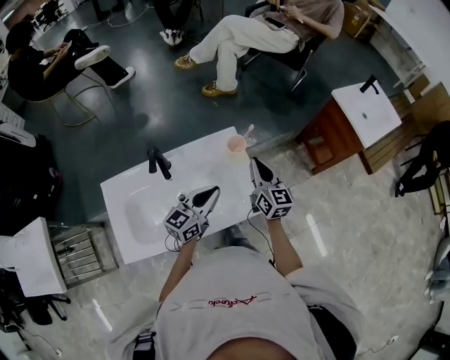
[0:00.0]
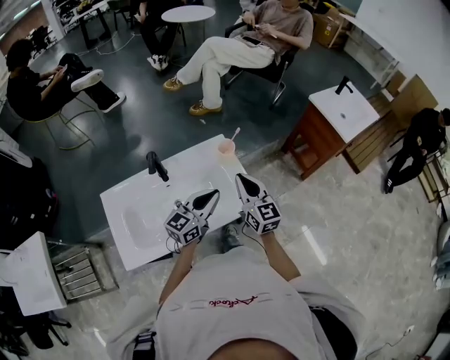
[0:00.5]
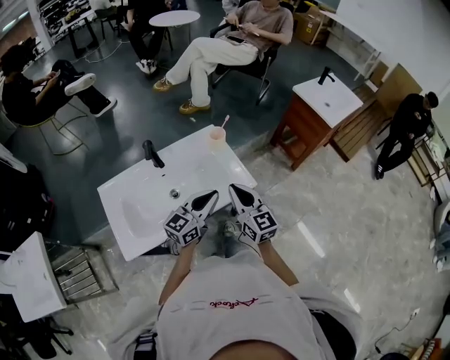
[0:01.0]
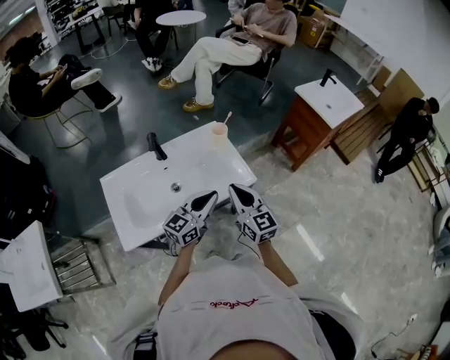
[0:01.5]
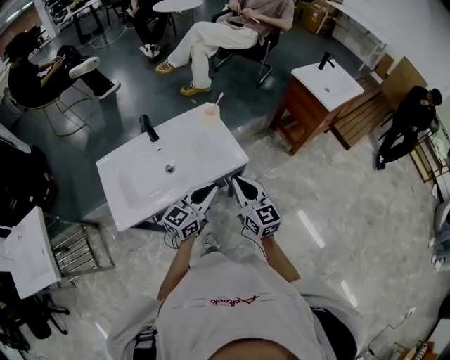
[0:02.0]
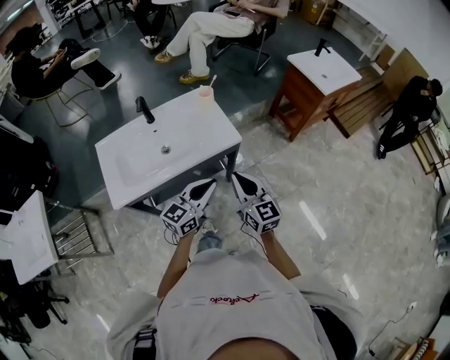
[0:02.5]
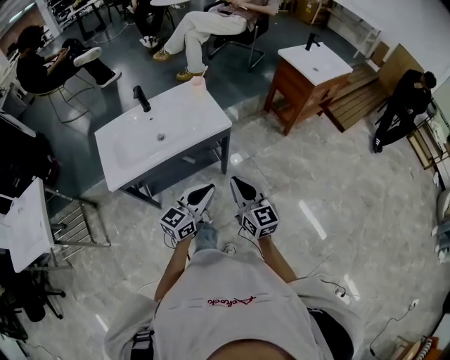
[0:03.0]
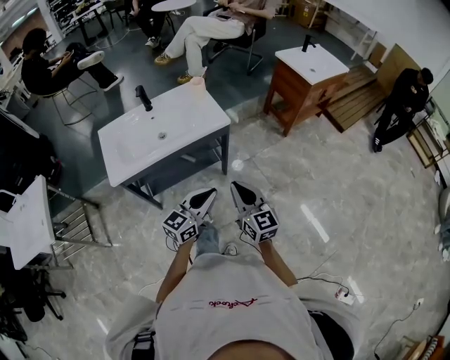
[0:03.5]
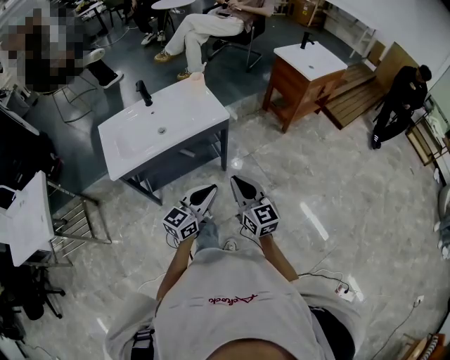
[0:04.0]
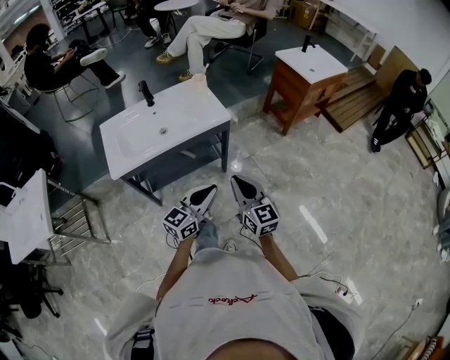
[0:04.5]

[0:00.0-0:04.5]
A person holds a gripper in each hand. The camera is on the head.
0:00.0 to 0:02.0: The right gripper moves backward, about 30 cm; the left gripper is displaced backward and to the right by approximately 20 cm.
0:02.0 to 0:04.5: The grippers both shift backward and to the right by about 25 cm.

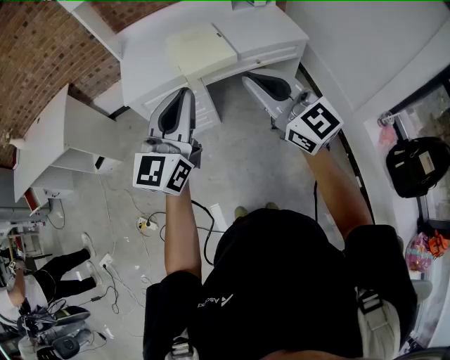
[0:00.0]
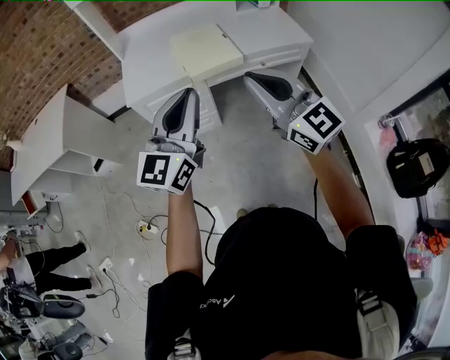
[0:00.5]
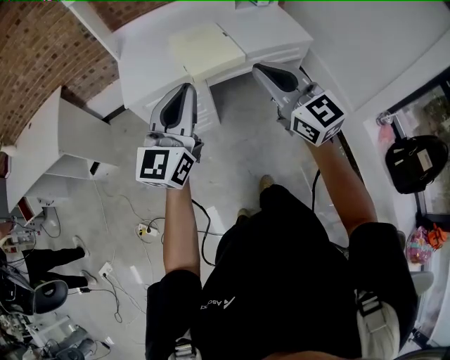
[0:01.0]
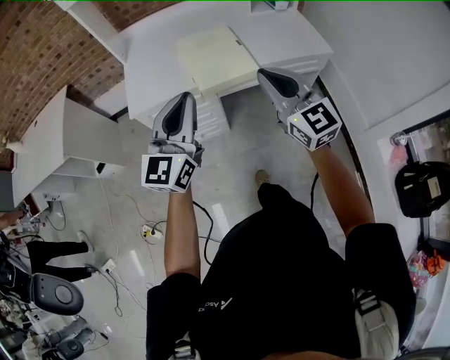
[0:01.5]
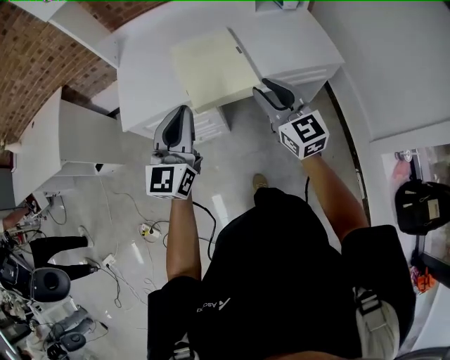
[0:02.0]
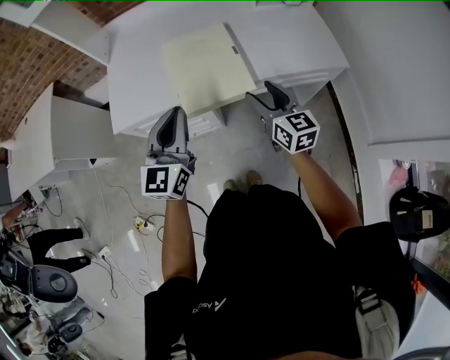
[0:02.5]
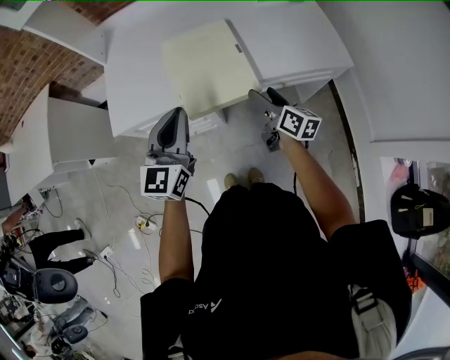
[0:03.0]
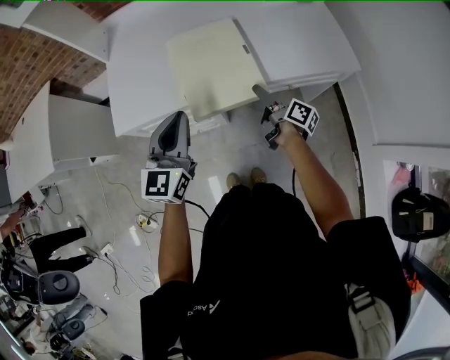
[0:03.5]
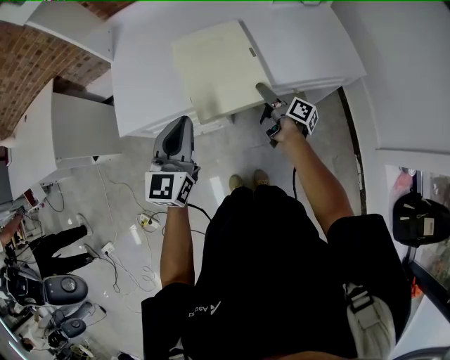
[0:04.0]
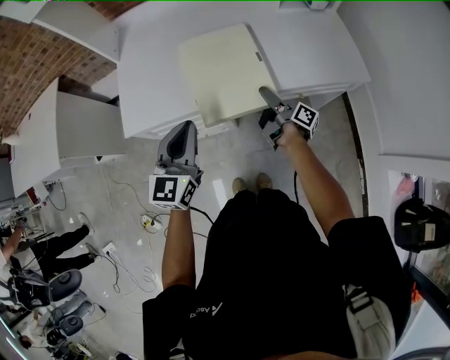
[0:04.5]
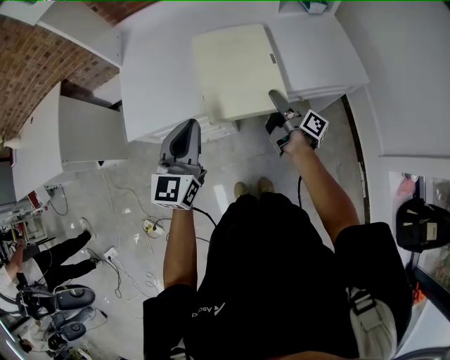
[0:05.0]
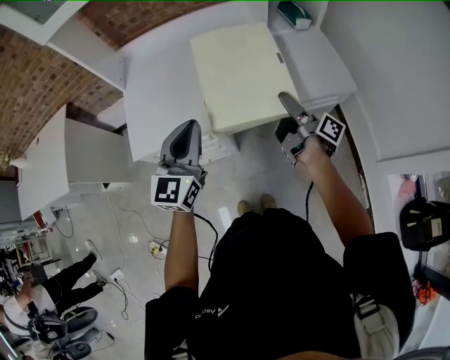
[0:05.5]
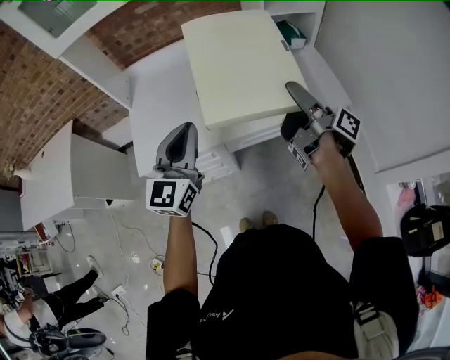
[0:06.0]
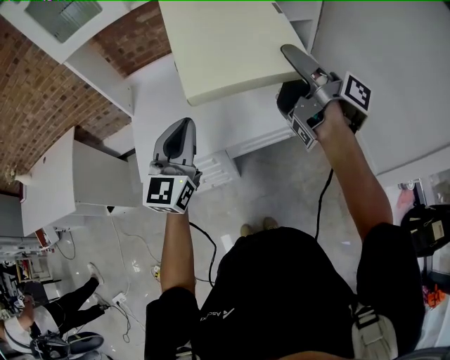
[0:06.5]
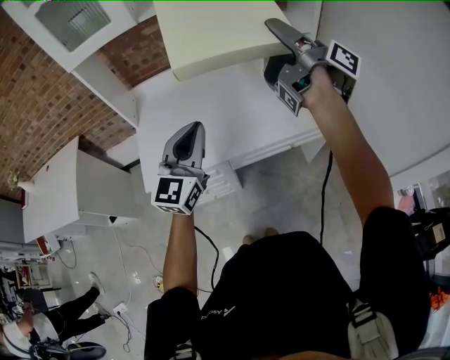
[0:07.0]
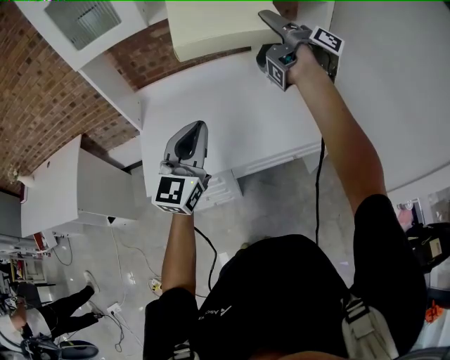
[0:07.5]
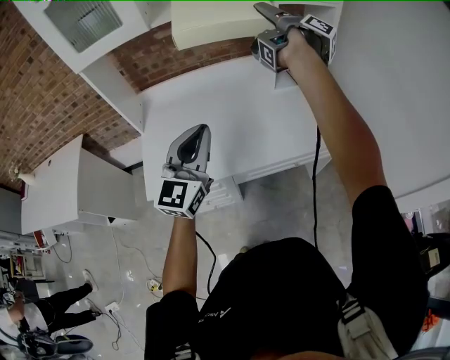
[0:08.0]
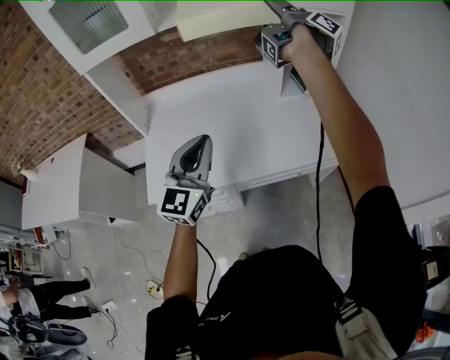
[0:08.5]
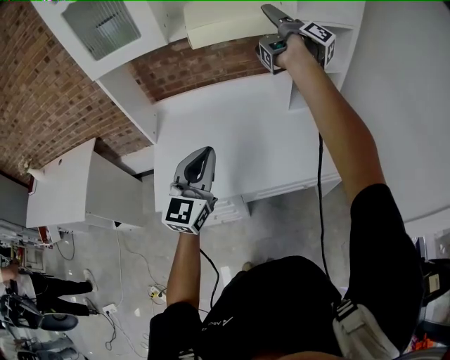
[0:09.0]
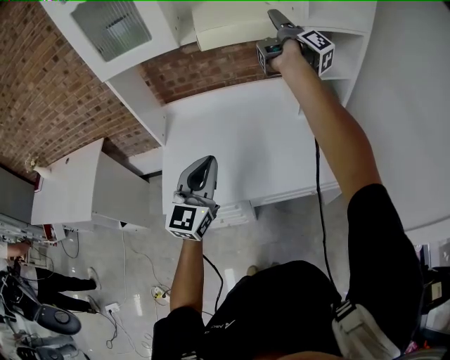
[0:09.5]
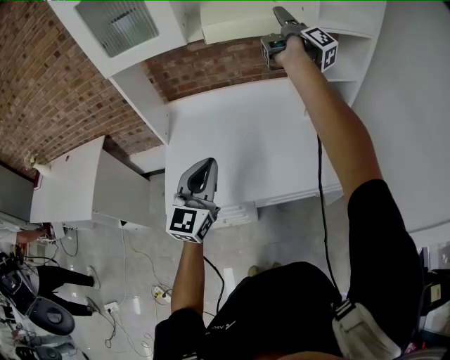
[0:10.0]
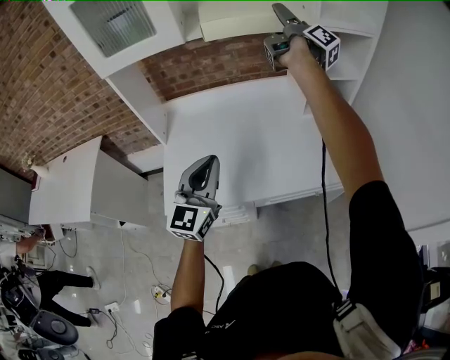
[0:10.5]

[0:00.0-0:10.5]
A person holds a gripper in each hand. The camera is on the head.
0:00.0 to 0:02.0: The two grippers go approximately 30 cm forward and downward.
0:02.0 to 0:04.0: The left gripper is displaced forward and downward by roughly 10 cm, while the right gripper heads downward and forward, covering some 30 cm, rolls clockwise, seen from behind, by roughly 90 degrees, and opens its fingers.
0:04.0 to 0:06.5: The right gripper travels upward by some 40 cm, and turns by some 30 degrees. Meanwhile the left gripper travels upward by about 15 cm.
0:06.5 to 0:08.5: The left gripper is displaced forward by some 5 cm; the right gripper moves forward and upward, about 30 cm.
0:08.5 to 0:10.5: The left gripper moves to the left, about 5 cm; the right gripper shifts some 10 cm forward.

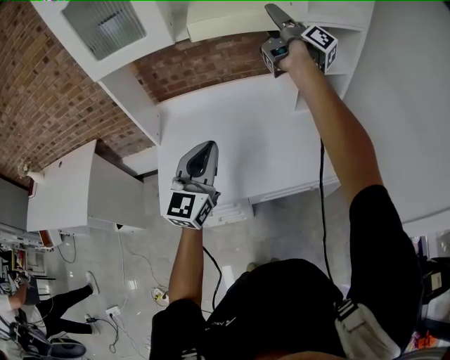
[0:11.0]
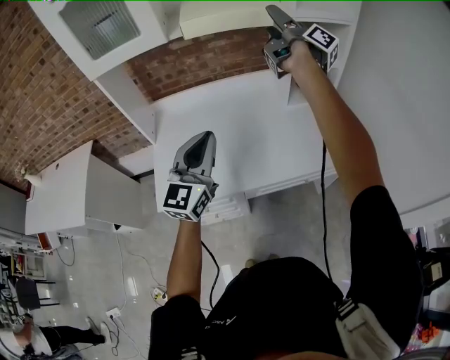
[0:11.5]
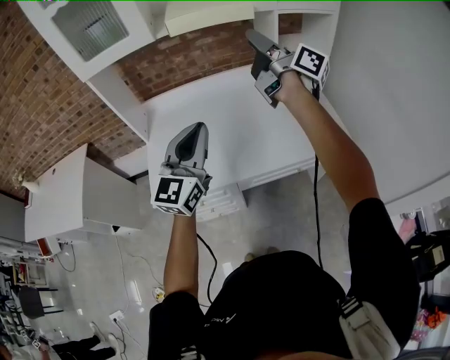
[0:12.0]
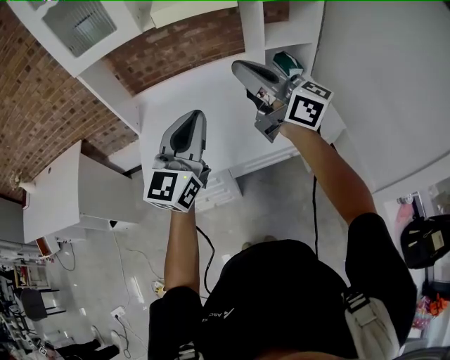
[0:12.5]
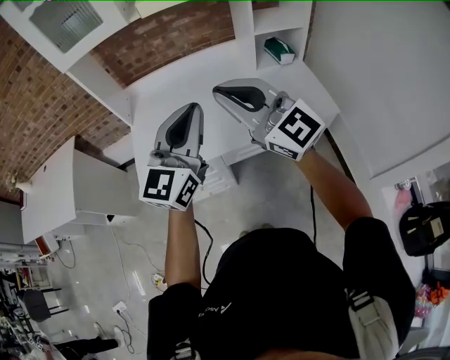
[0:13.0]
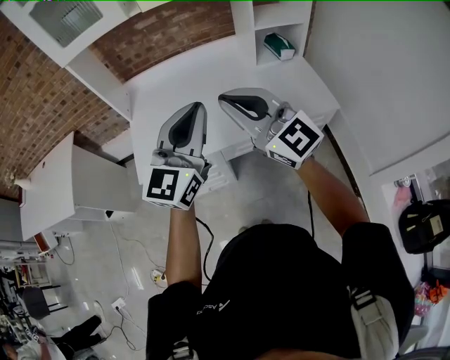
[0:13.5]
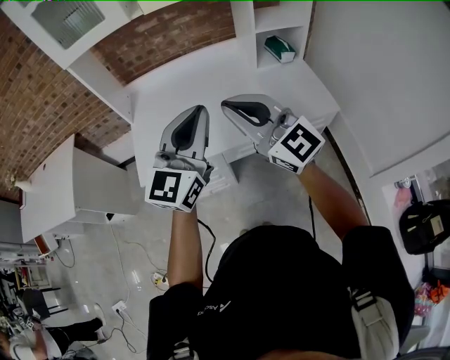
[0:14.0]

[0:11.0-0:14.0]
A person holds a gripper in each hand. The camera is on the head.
0:11.0 to 0:12.5: The left gripper moves backward, upward and to the right, roughly 15 cm. The right gripper goes about 30 cm backward, rolls counterclockwise, seen from behind, by about 50 degrees, and closes.
0:12.5 to 0:14.0: The left gripper changes place by approximately 5 cm; the right gripper is displaced backward and downward by some 15 cm, and turns by about 30 degrees.

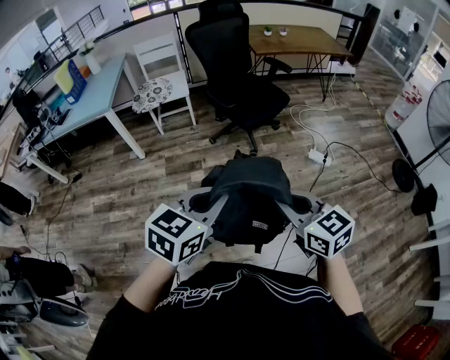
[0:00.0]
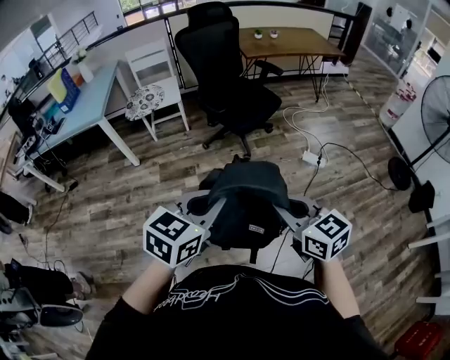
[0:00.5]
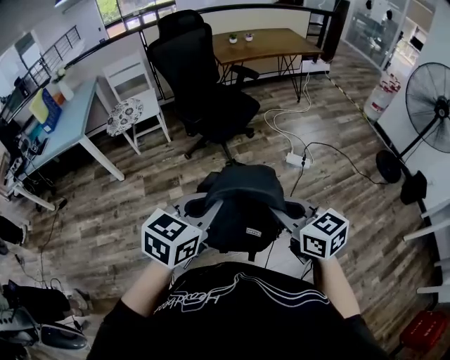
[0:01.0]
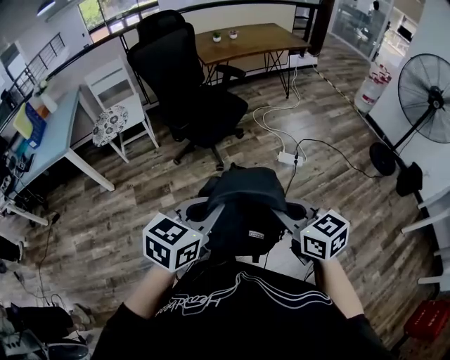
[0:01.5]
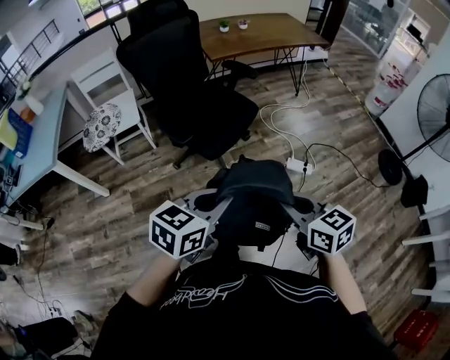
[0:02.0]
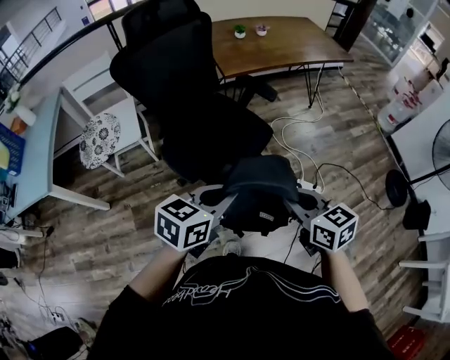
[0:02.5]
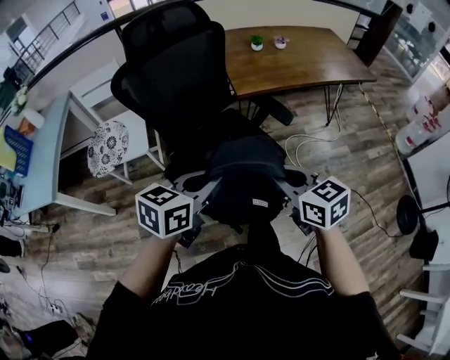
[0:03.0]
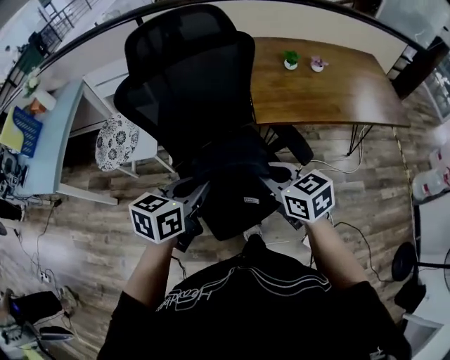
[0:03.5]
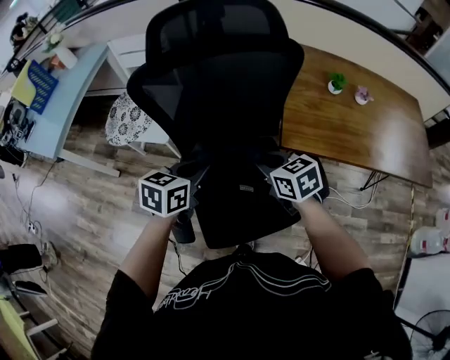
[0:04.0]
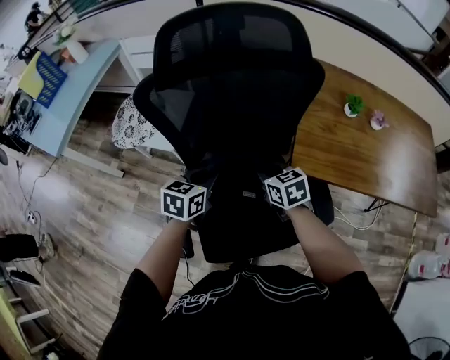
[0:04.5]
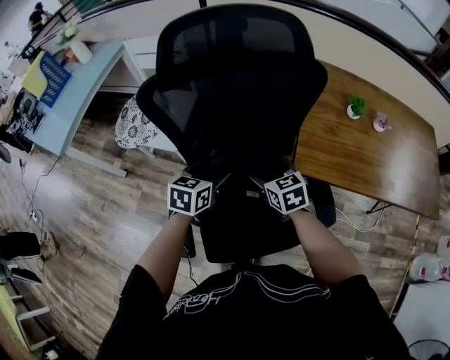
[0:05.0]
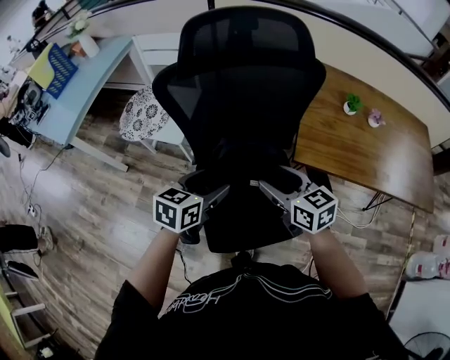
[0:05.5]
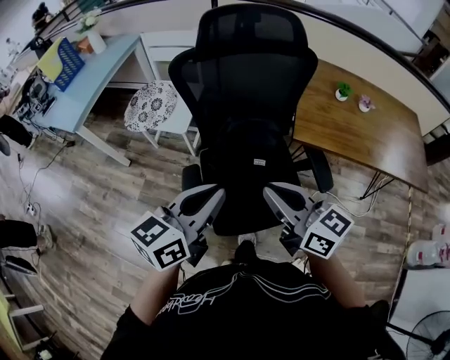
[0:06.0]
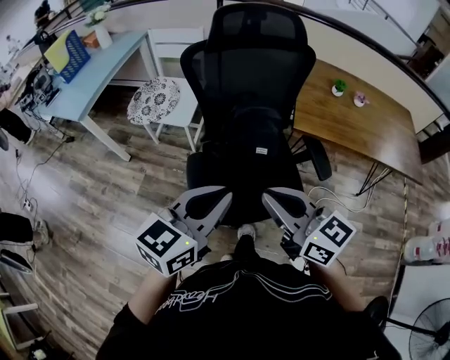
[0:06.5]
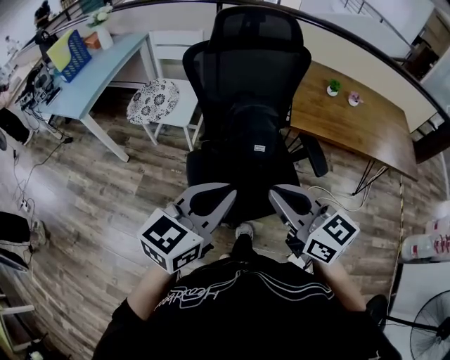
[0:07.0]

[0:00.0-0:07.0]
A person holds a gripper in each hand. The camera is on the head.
0:00.0 to 0:02.0: The right gripper moves forward and to the right, roughly 30 cm. Meanwhile the left gripper shifts approximately 30 cm forward.
0:02.0 to 0:03.5: The pair of grippers is taken about 60 cm. The right gripper rotates roughly 30 degrees. The left gripper turns by some 30 degrees.
0:03.5 to 0:05.0: Both grippers travel together forward and downward, some 25 cm. The left gripper rotates approximately 20 degrees, and opens its fingers, while the right gripper opens up.
0:05.0 to 0:07.0: Both grippers travel together backward and upward, roughly 40 cm. The left gripper swivels about 30 degrees, and closes up. Meanwhile the right gripper turns by some 30 degrees, and closes up.

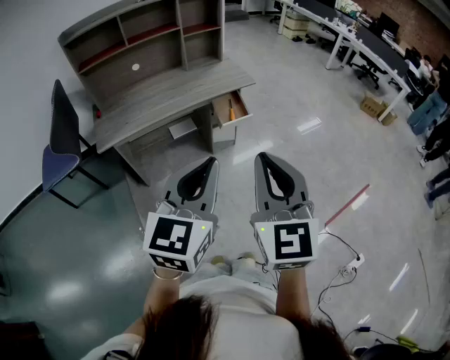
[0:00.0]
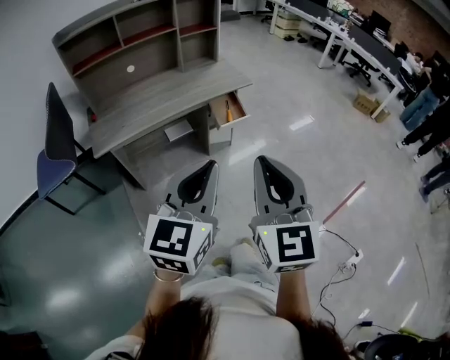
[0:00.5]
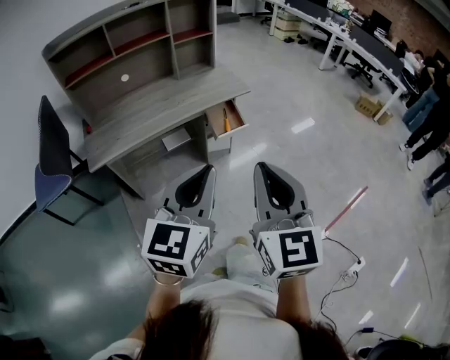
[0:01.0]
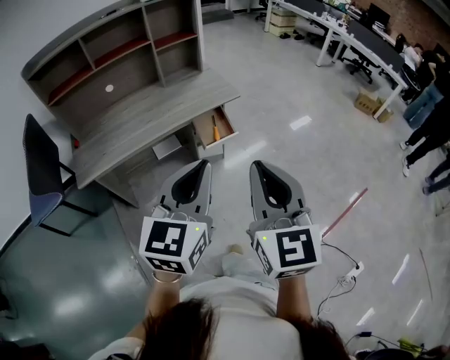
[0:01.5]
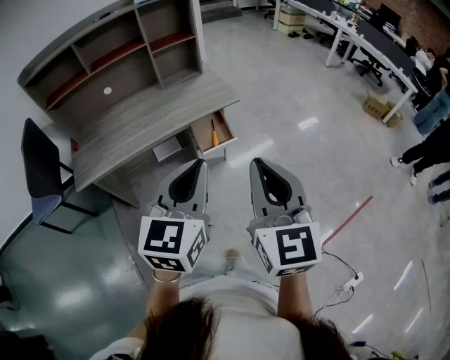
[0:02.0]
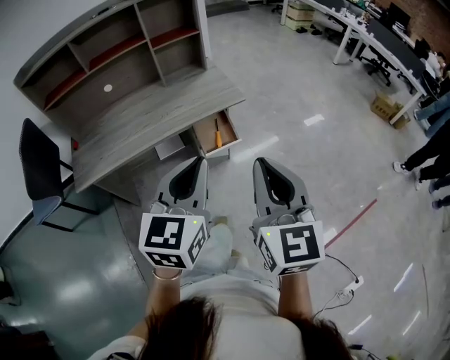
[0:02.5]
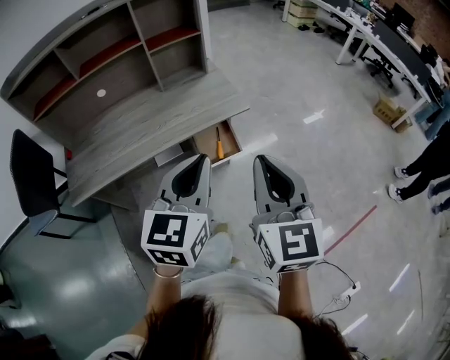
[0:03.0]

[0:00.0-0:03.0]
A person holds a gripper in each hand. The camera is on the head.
0:00.0 to 0:01.5: The two grippers go roughly 15 cm forward.
0:01.5 to 0:03.0: Both grippers travel together forward, about 20 cm.
